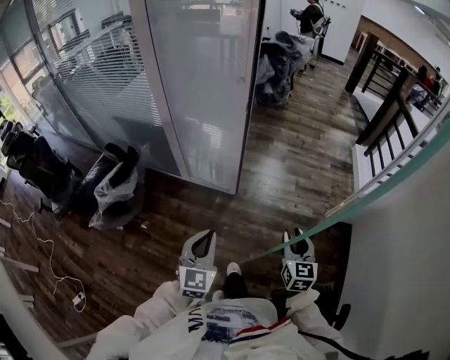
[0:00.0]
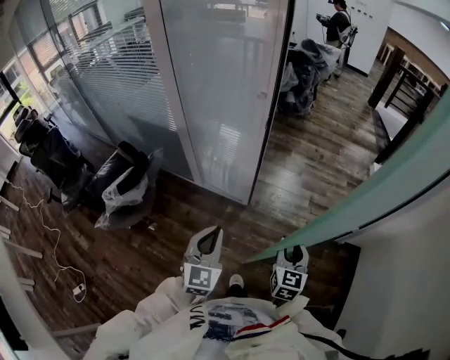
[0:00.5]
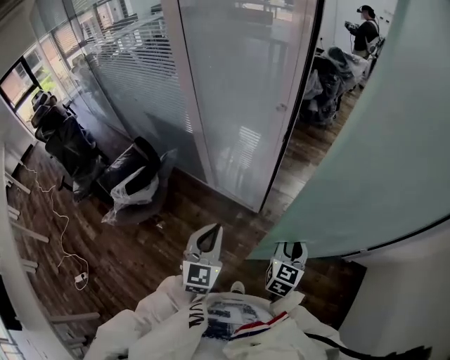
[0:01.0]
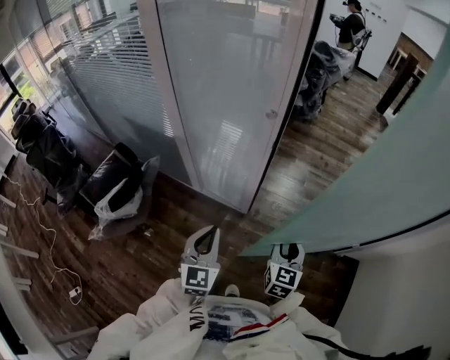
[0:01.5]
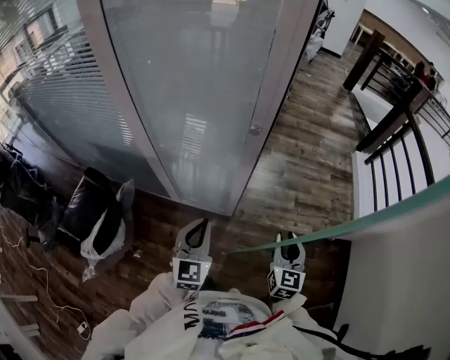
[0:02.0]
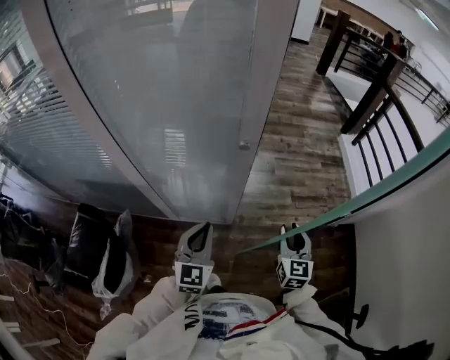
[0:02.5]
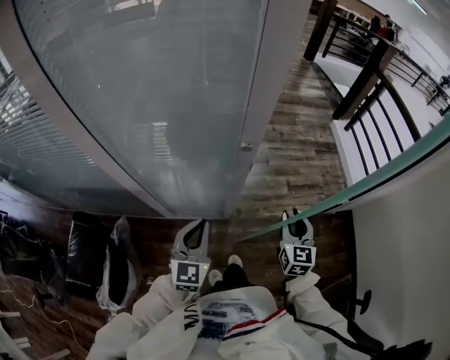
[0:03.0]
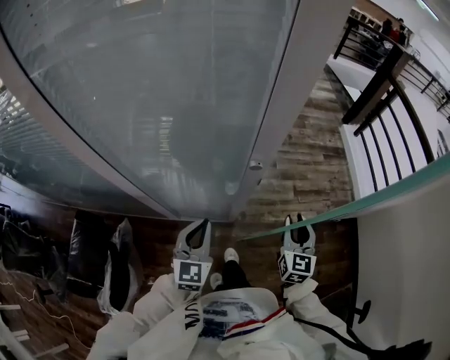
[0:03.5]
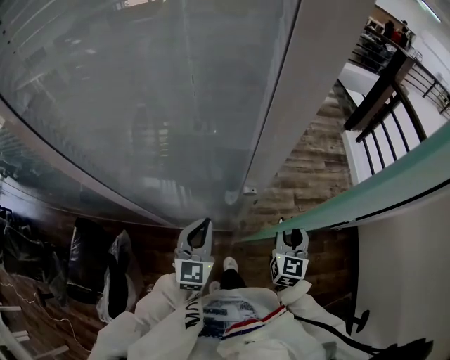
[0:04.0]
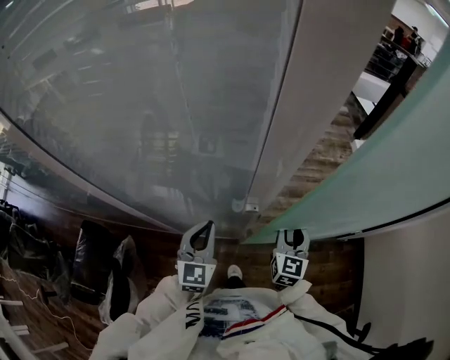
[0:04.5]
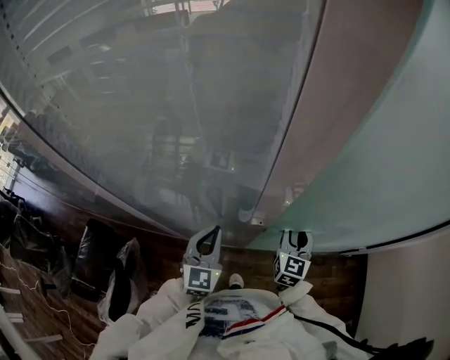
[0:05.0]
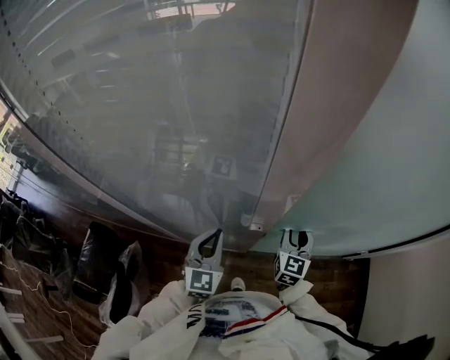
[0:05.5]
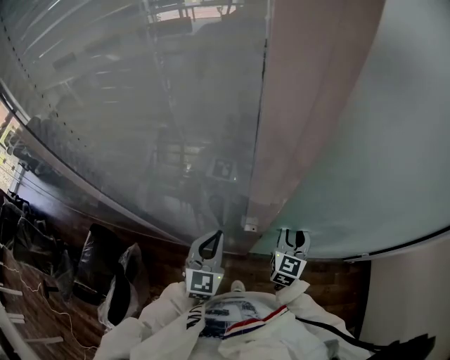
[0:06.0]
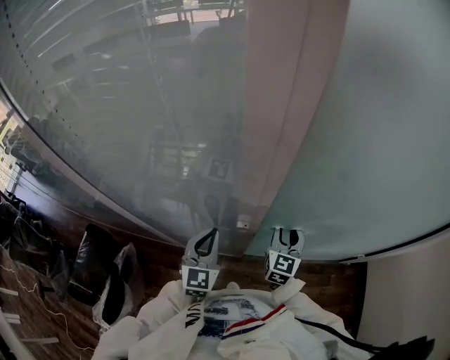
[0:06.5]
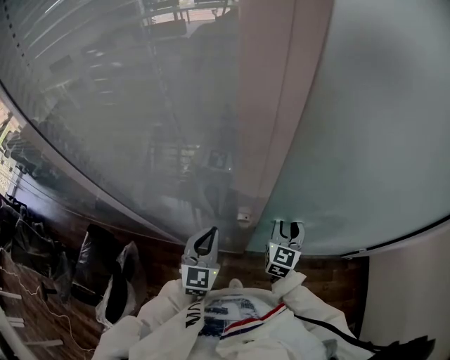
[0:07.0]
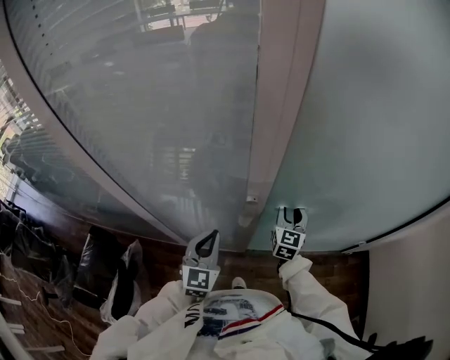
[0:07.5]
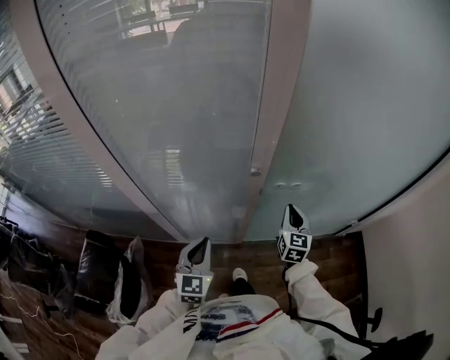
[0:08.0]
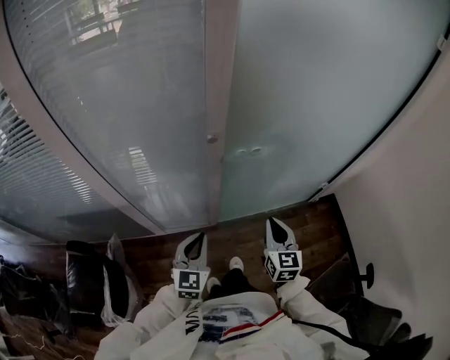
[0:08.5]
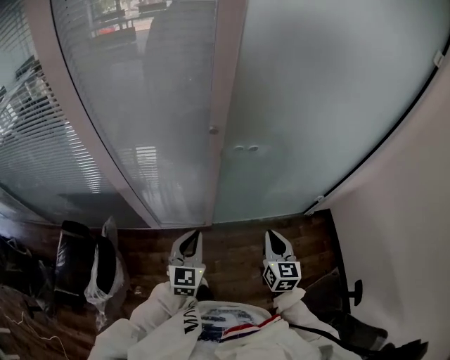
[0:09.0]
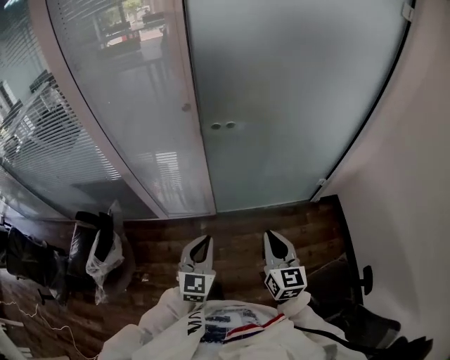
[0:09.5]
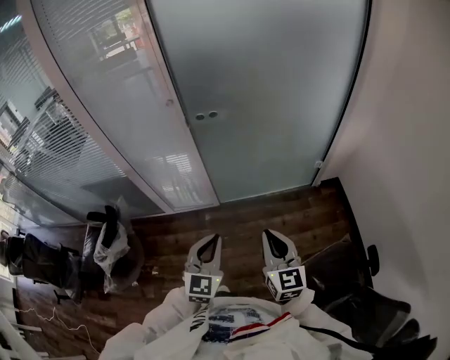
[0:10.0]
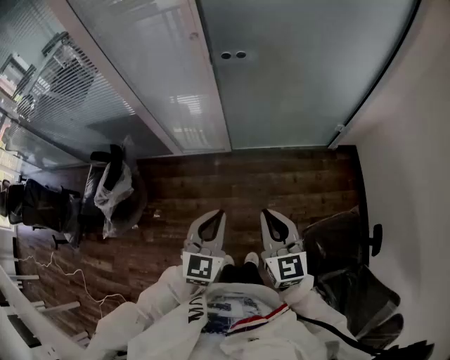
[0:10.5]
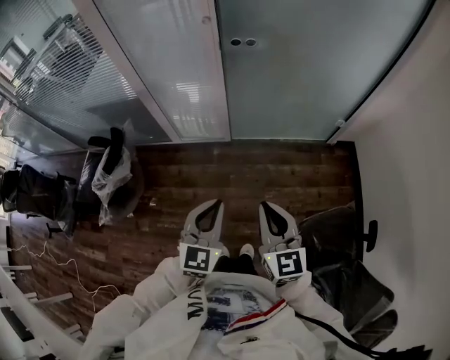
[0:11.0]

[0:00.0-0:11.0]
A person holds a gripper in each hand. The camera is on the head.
0:00.0 to 0:02.0: The left gripper goes some 30 cm forward; the right gripper heads forward and to the left, covering roughly 25 cm.
0:02.0 to 0:03.5: The two grippers go some 10 cm forward.
0:03.5 to 0:05.5: The grippers both shift forward by about 15 cm.
0:05.5 to 0:07.5: The left gripper heads backward, covering approximately 5 cm.
0:07.5 to 0:09.0: The left gripper goes about 20 cm backward, while the right gripper travels backward by approximately 35 cm, and closes.
0:09.0 to 0:11.0: The right gripper is displaced backward by roughly 30 cm. Meanwhile the left gripper heads backward and to the right, covering about 35 cm.

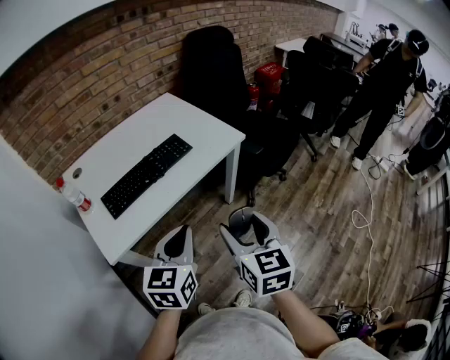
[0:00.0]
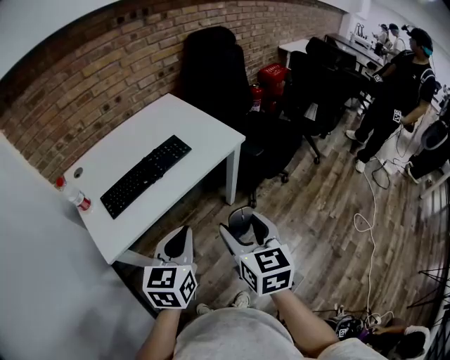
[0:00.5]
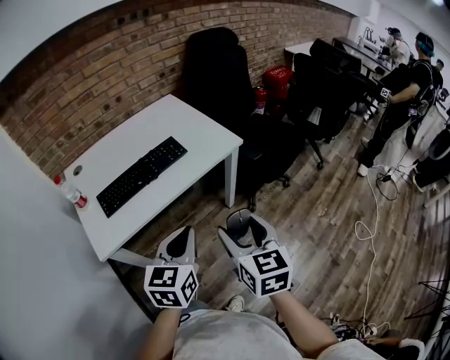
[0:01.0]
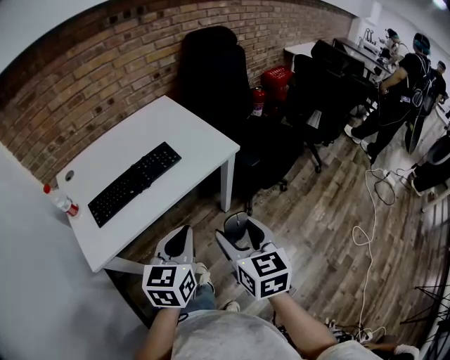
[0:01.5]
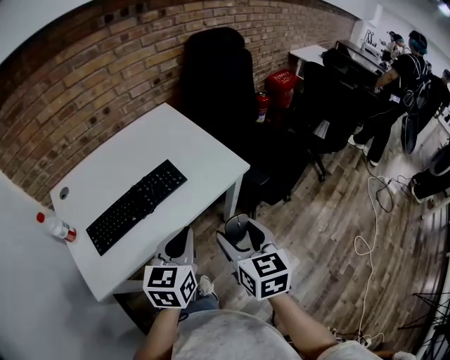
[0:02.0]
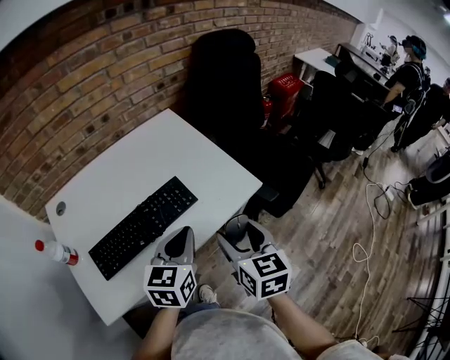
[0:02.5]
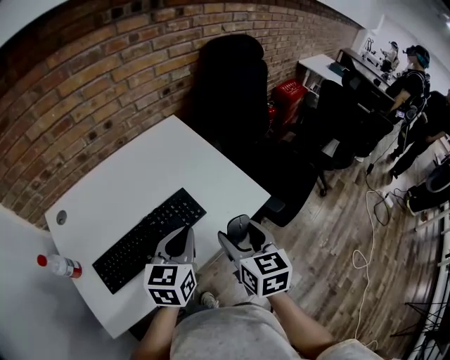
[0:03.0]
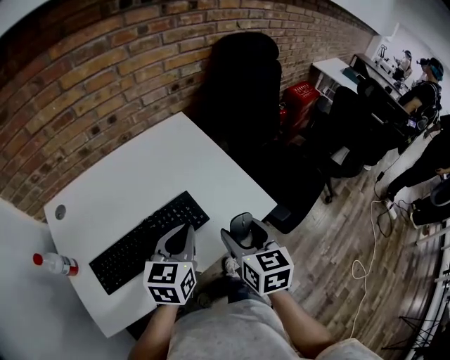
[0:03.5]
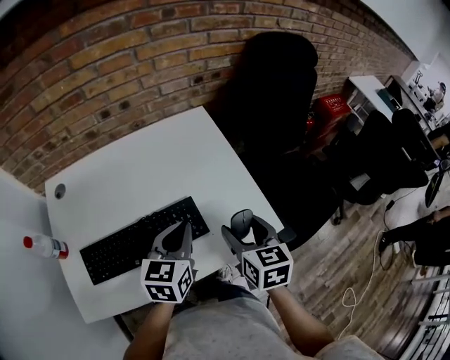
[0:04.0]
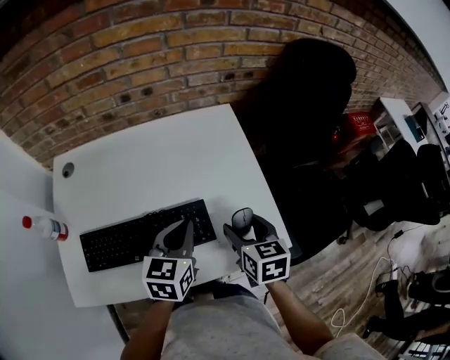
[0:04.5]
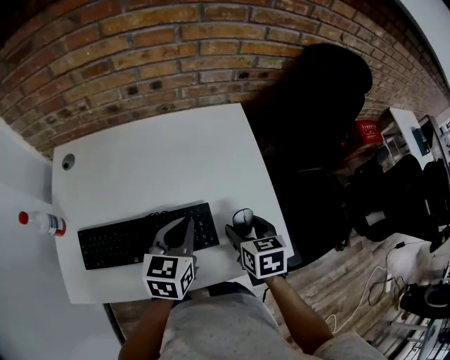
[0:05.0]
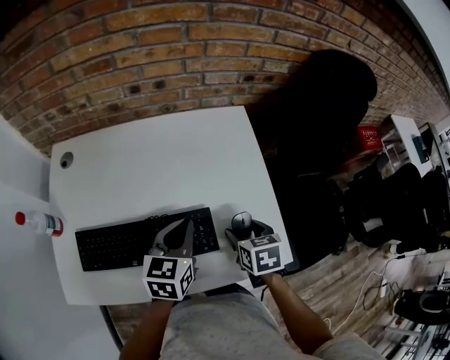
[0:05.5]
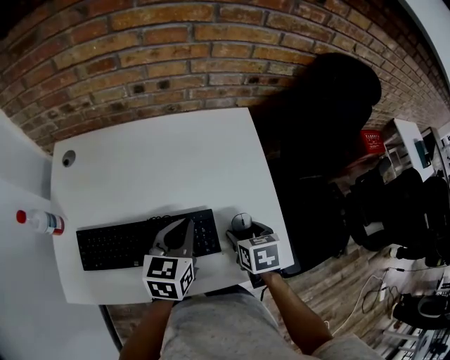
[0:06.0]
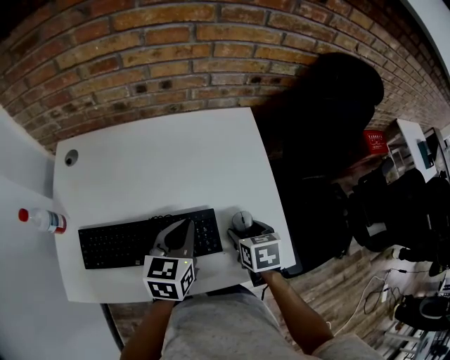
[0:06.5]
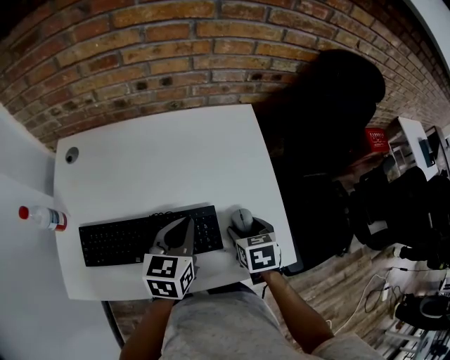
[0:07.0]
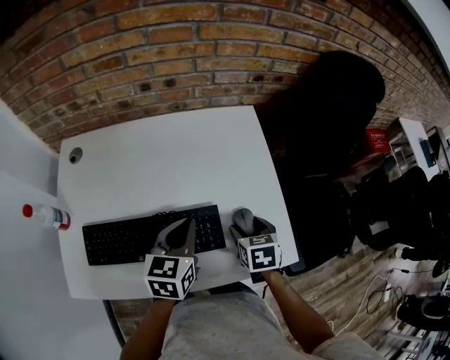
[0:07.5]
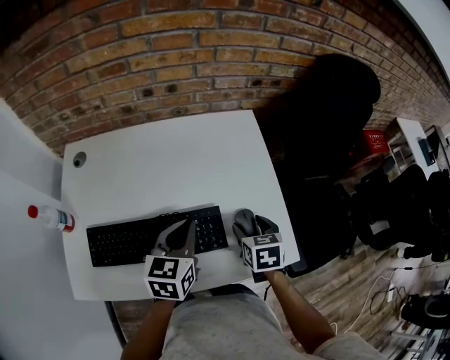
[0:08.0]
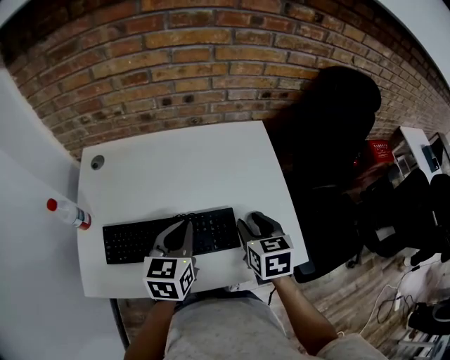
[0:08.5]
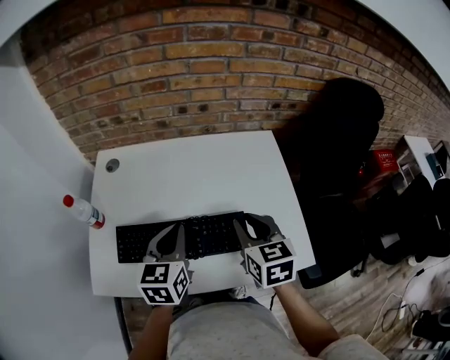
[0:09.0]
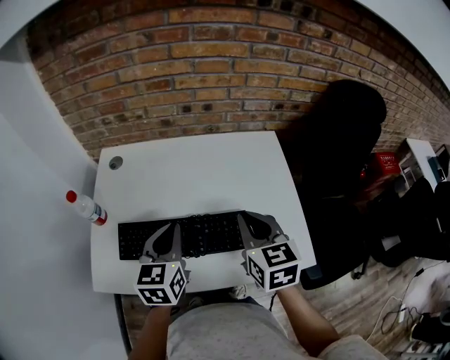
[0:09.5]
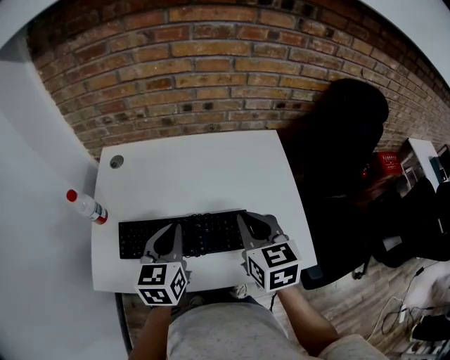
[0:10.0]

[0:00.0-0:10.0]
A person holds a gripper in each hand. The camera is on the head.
0:00.0 to 0:02.0: The grippers both shift forward by roughly 20 cm.
0:02.0 to 0:04.0: The grippers both shift forward by roughly 25 cm.
0:04.0 to 0:06.0: The left gripper goes approximately 5 cm forward. Meanwhile the right gripper shifts about 15 cm downward and forward, and swivels about 30 degrees.
0:06.0 to 0:08.0: The grippers make only small movements.
0:08.0 to 0:10.0: The left gripper is displaced to the left and upward by approximately 15 cm. The right gripper is displaced upward and to the left by approximately 20 cm, swivels approximately 30 degrees, and closes.

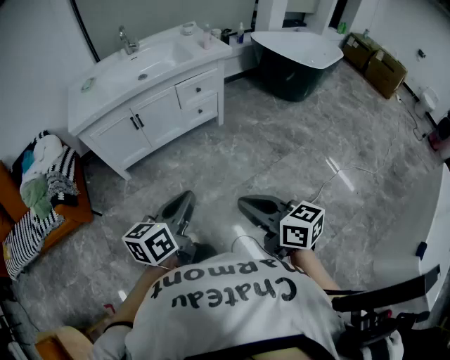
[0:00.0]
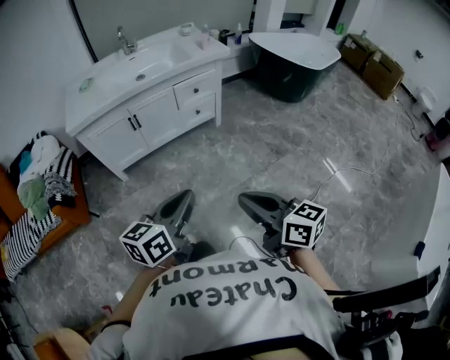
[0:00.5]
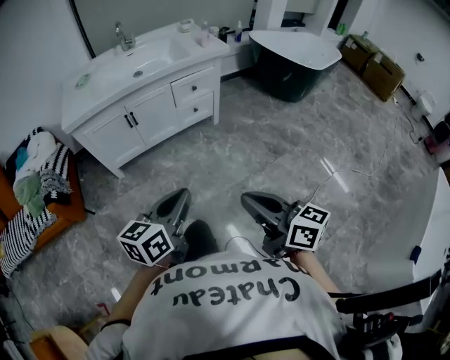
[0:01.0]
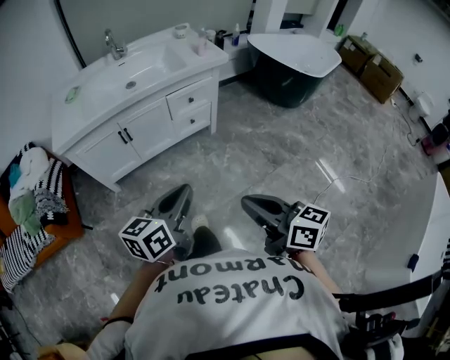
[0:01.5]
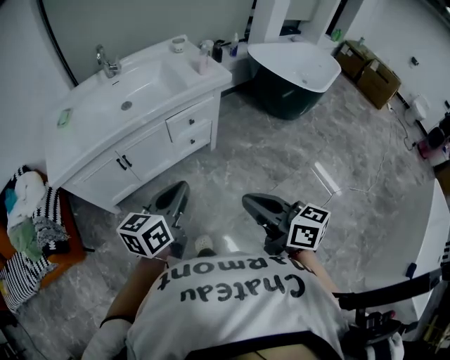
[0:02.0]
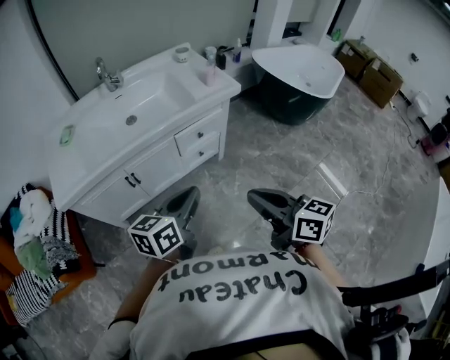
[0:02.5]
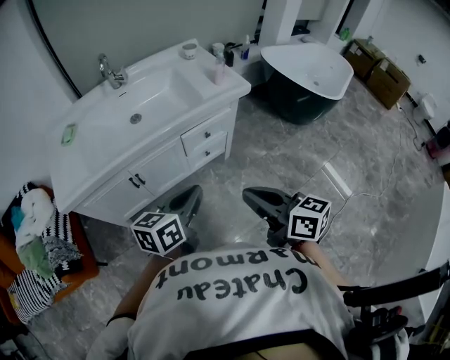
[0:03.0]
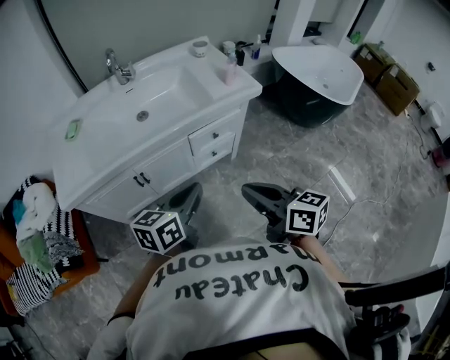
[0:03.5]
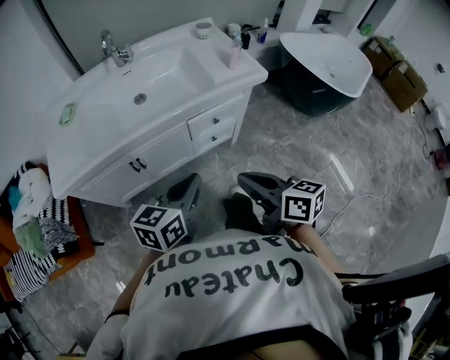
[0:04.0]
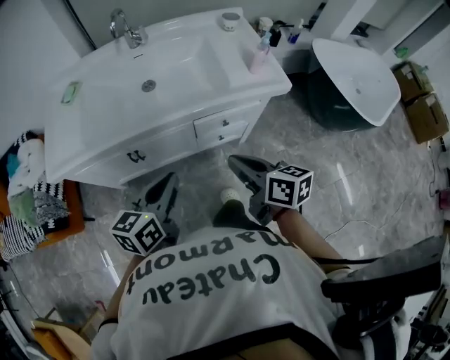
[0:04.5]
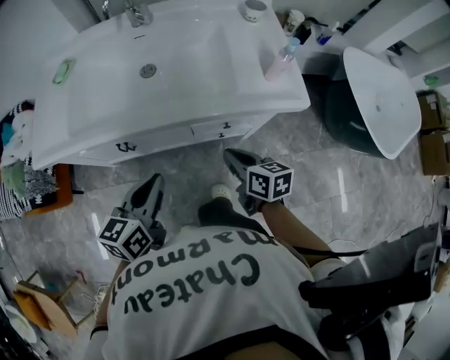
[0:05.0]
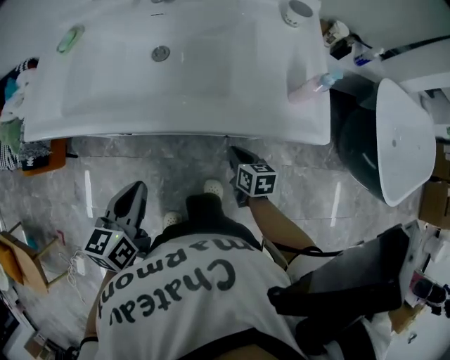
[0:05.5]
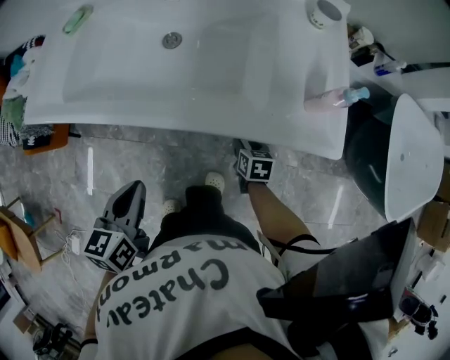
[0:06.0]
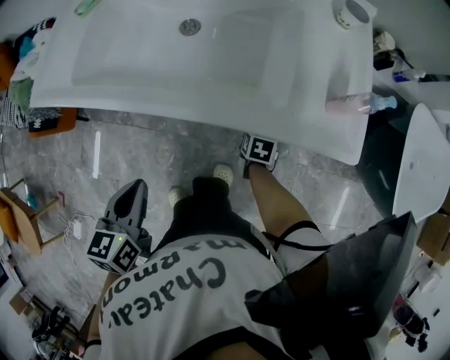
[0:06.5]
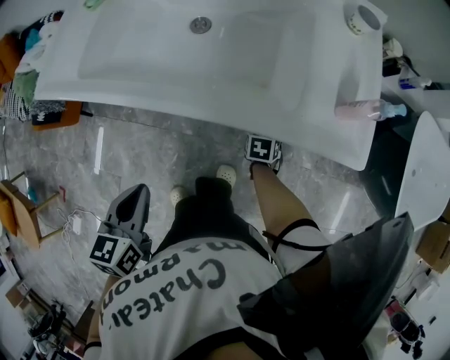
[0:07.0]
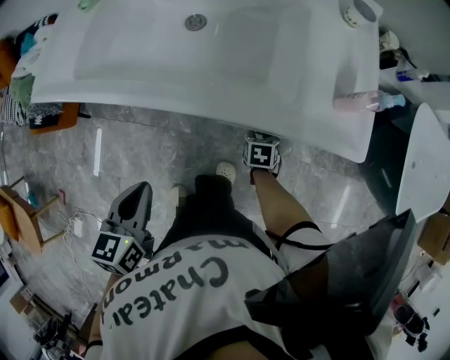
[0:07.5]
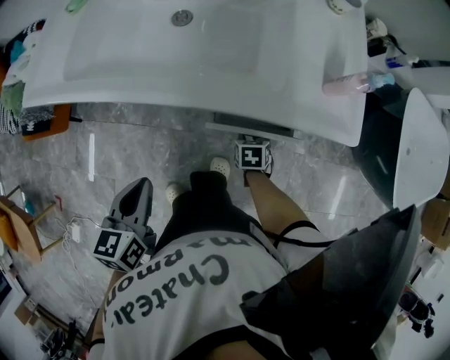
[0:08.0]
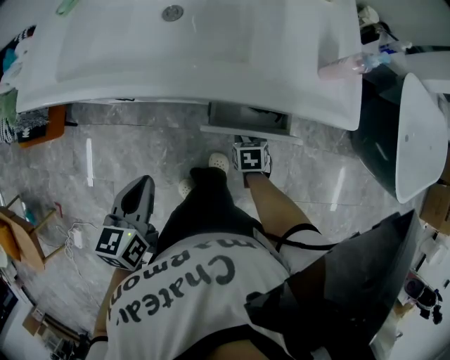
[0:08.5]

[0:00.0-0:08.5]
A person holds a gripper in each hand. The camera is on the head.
0:00.0 to 0:02.0: Both grippers travel together forward, some 30 cm.
0:02.0 to 0:04.0: The grippers both shift forward by about 15 cm.
0:04.0 to 0:06.5: The right gripper shifts roughly 40 cm downward, angles its fingers downward, by about 50 degrees, and opens up; the left gripper shifts by about 15 cm, and changes its angle by roughly 50 degrees.
0:06.5 to 0:08.5: The right gripper goes roughly 10 cm backward.
